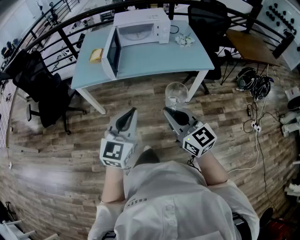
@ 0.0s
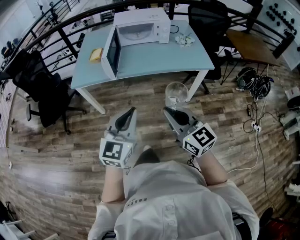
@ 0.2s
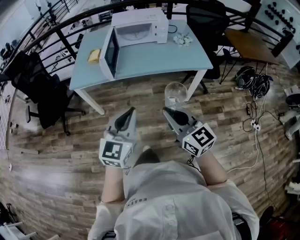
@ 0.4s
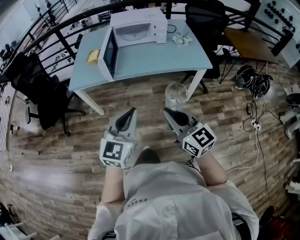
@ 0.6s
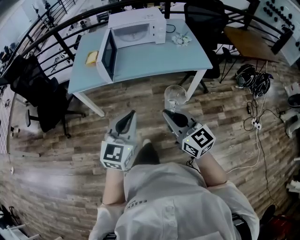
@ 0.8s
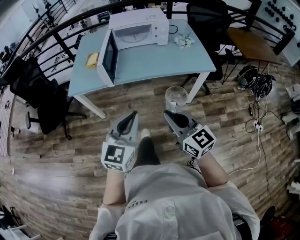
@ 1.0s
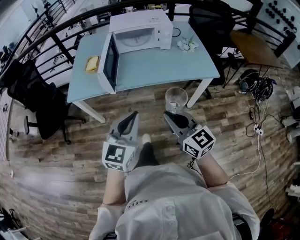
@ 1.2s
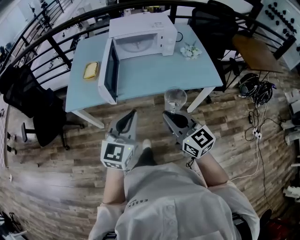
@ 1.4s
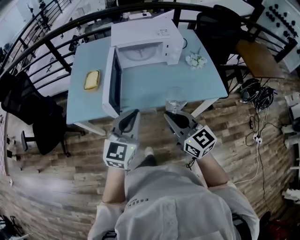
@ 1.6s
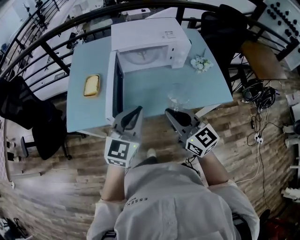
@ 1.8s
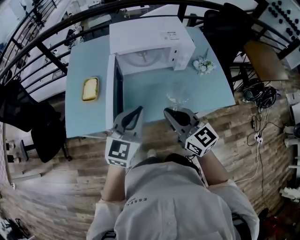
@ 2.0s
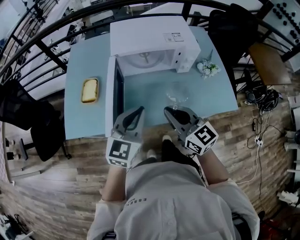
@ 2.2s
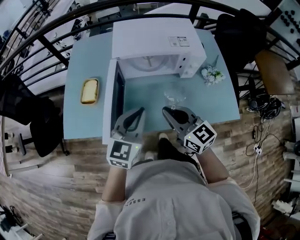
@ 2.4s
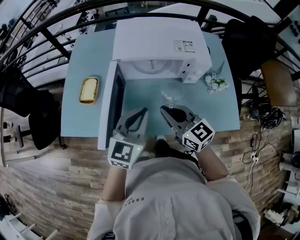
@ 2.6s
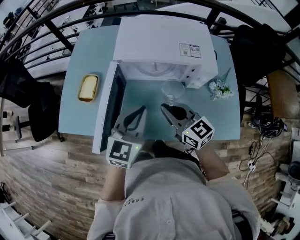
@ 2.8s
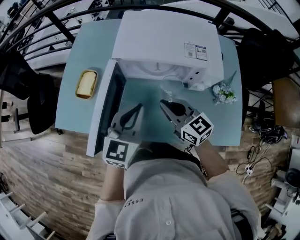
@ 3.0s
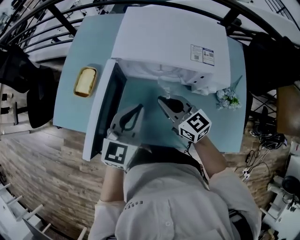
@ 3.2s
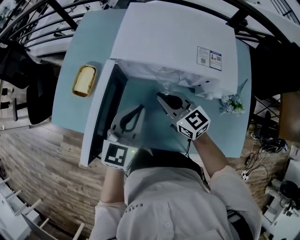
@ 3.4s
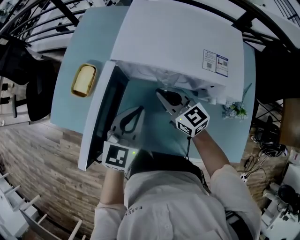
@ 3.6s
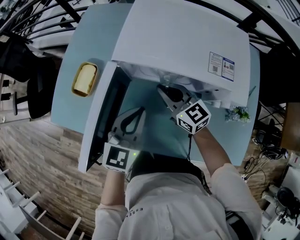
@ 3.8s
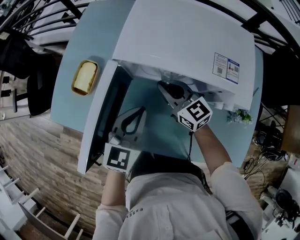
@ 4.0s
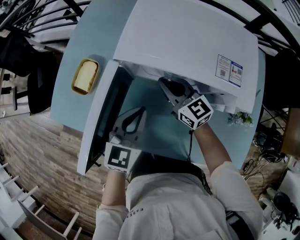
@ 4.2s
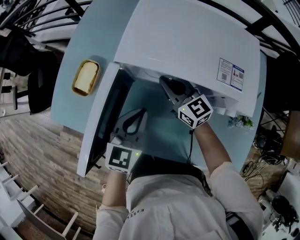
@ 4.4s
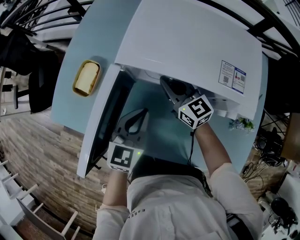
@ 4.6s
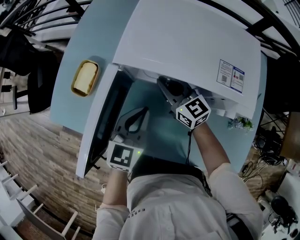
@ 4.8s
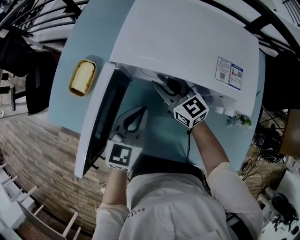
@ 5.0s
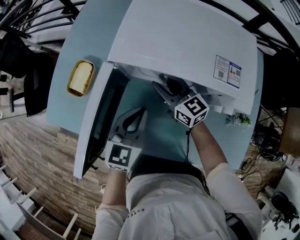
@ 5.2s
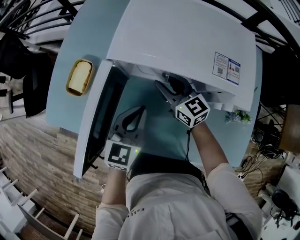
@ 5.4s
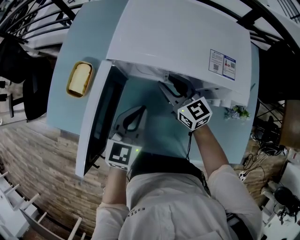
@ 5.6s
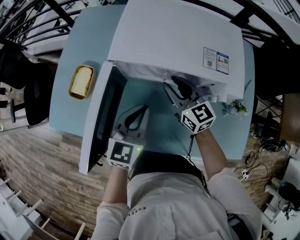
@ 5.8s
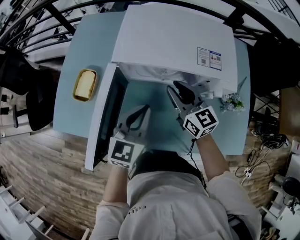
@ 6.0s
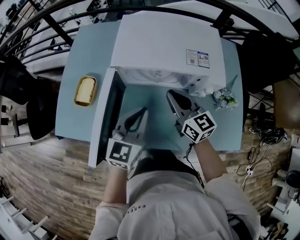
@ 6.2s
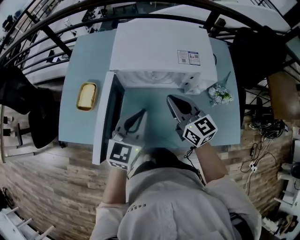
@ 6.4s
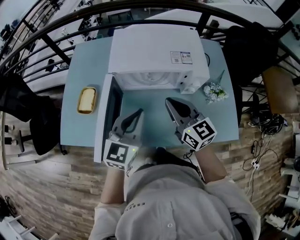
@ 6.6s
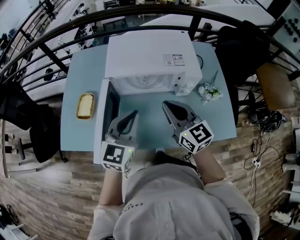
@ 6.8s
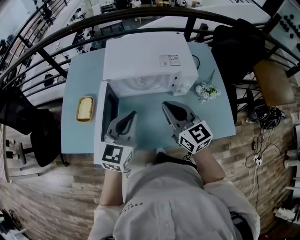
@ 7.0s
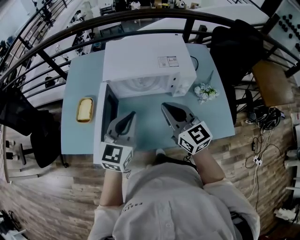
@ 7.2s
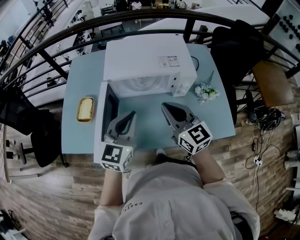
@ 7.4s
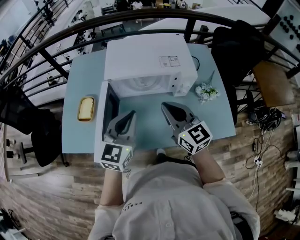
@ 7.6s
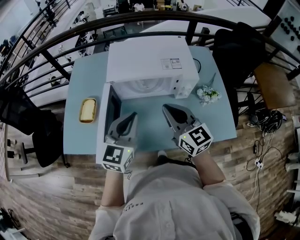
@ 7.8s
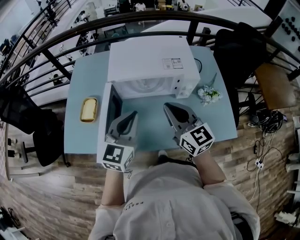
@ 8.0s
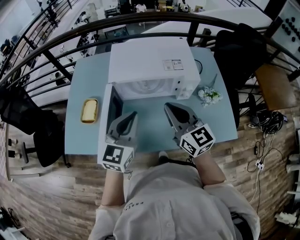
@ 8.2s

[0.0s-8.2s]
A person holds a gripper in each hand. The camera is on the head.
0.0s to 1.6s: The grippers both shift forward by about 30 cm.
1.6s to 3.2s: Both grippers move forward, about 35 cm. The right gripper turns by roughly 20 degrees.
3.2s to 5.0s: The right gripper moves forward and downward, about 15 cm. The left gripper heads downward and forward, covering roughly 10 cm.
5.0s to 6.6s: The left gripper travels upward and backward by approximately 15 cm, and turns by approximately 20 degrees. The right gripper goes some 25 cm backward, upward and to the right, rotates some 30 degrees, and closes.
6.6s to 8.2s: The right gripper moves roughly 5 cm.

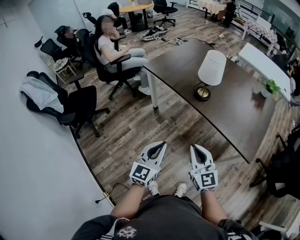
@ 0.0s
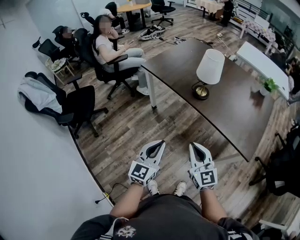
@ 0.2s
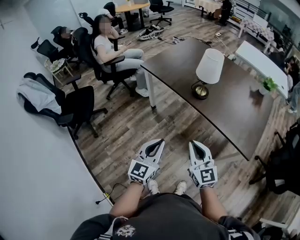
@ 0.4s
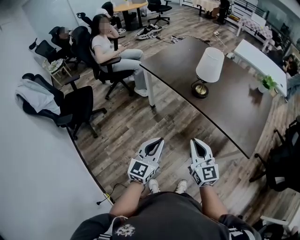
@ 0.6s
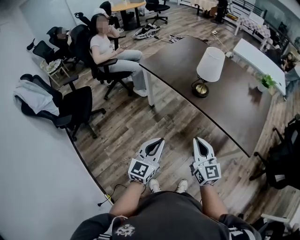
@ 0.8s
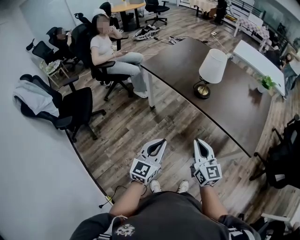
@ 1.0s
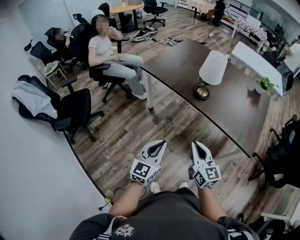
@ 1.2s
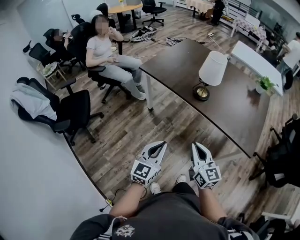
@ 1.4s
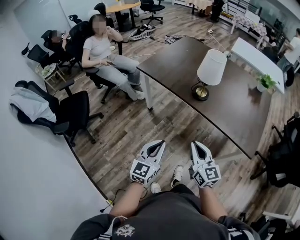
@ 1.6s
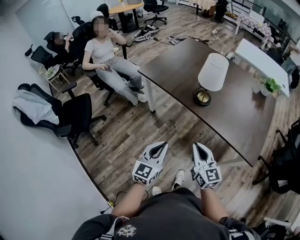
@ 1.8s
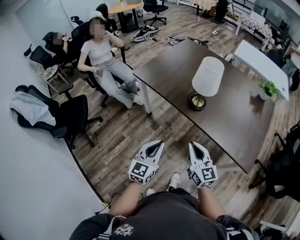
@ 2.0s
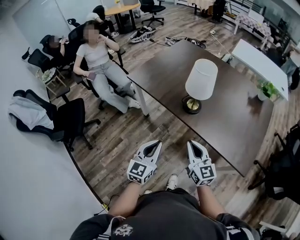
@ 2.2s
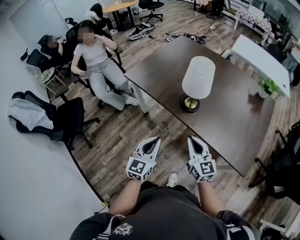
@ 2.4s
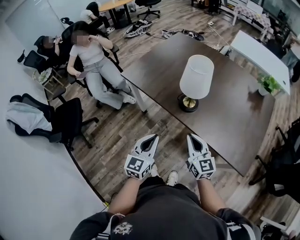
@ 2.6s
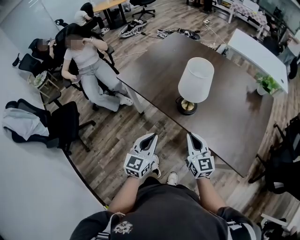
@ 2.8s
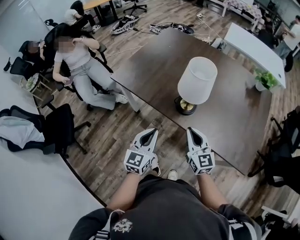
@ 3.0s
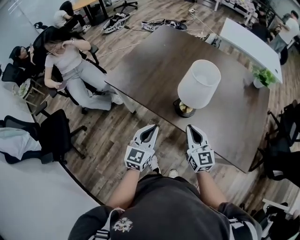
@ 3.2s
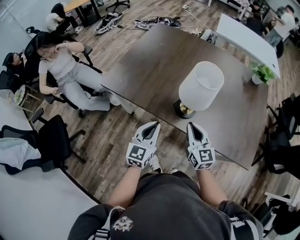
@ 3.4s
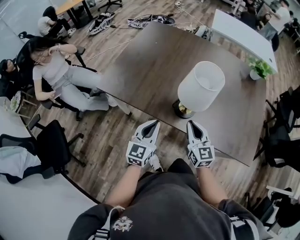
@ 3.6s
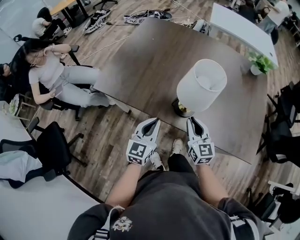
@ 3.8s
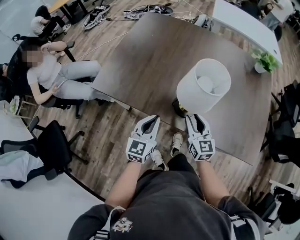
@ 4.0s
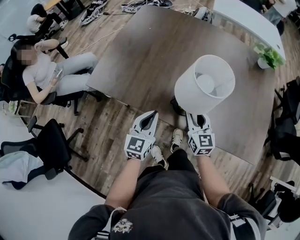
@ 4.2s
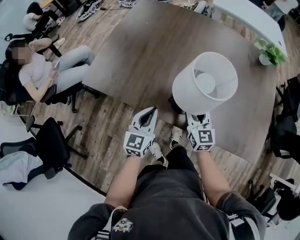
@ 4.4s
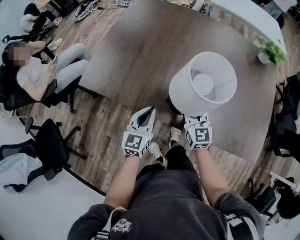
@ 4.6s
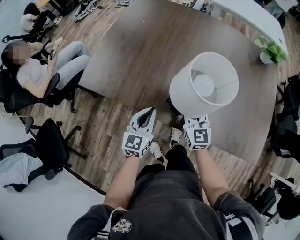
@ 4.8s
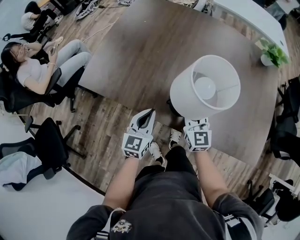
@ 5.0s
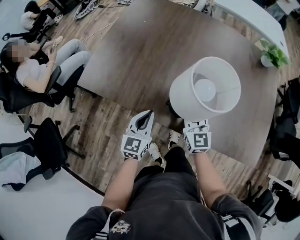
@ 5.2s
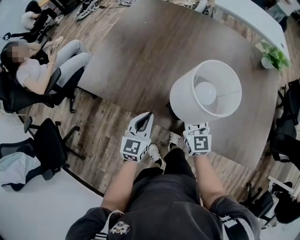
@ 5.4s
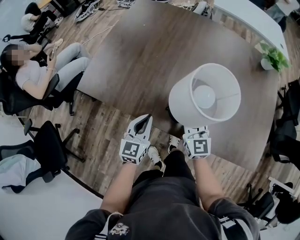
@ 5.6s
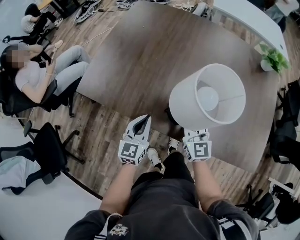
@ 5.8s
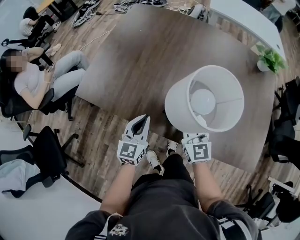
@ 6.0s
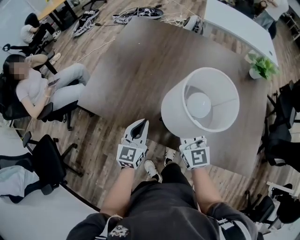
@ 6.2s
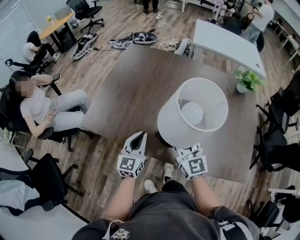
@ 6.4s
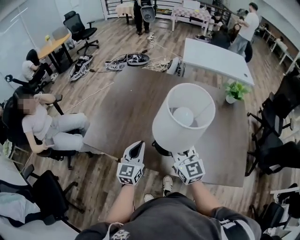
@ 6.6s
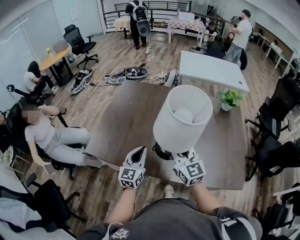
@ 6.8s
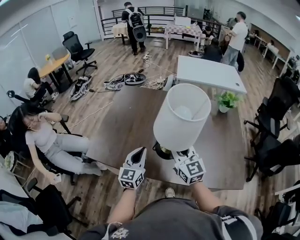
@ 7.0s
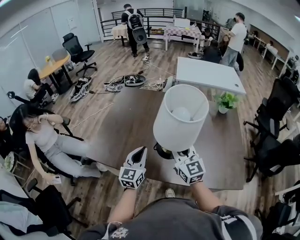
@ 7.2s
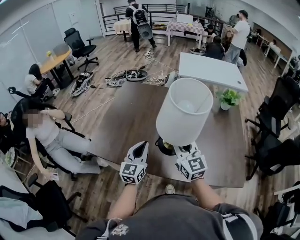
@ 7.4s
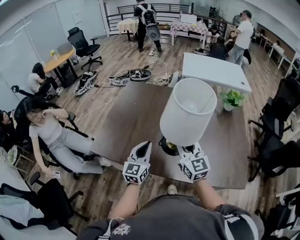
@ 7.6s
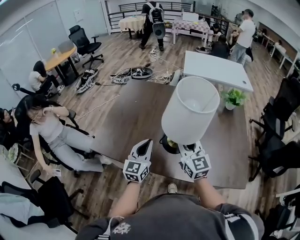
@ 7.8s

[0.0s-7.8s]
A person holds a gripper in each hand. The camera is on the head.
0.0s to 1.6s: The left gripper shifts by about 5 cm. The right gripper ends up roughly 5 cm from where it was.
1.6s to 3.2s: The grippers both shift forward by about 30 cm.
3.2s to 4.6s: The grippers both shift forward and downward by approximately 20 cm. The right gripper opens.
4.6s to 6.2s: The right gripper travels upward by about 10 cm.
6.2s to 7.8s: Both grippers travel together upward, approximately 15 cm.

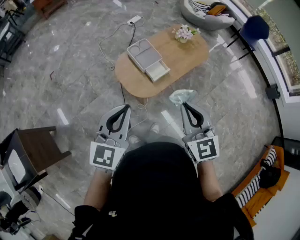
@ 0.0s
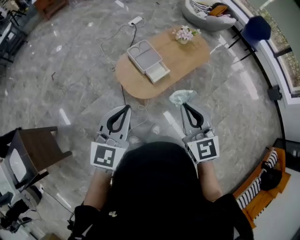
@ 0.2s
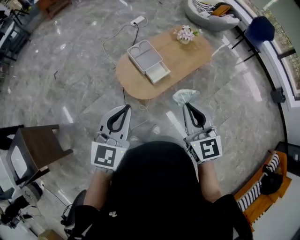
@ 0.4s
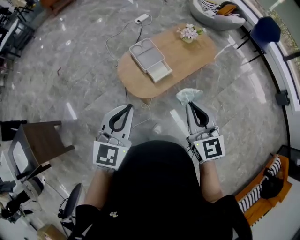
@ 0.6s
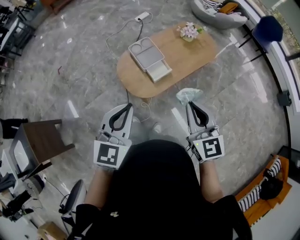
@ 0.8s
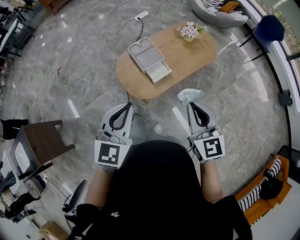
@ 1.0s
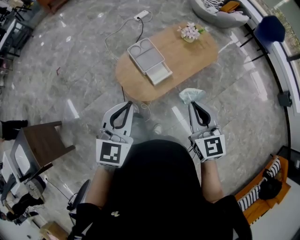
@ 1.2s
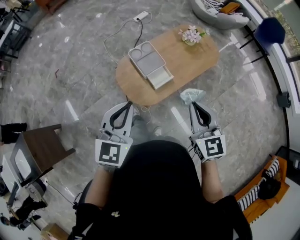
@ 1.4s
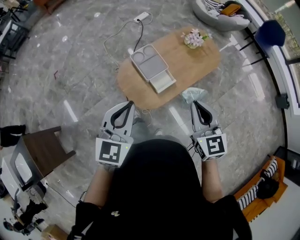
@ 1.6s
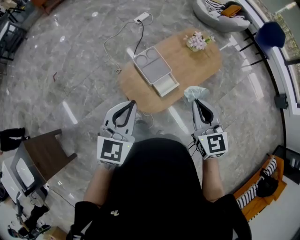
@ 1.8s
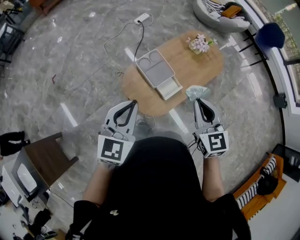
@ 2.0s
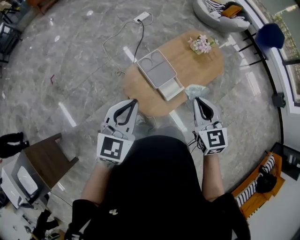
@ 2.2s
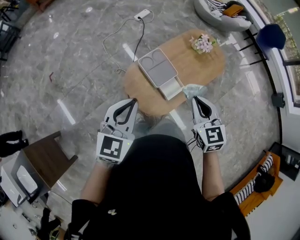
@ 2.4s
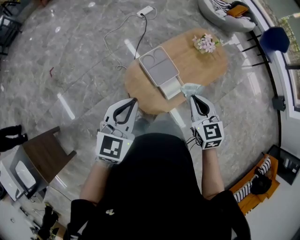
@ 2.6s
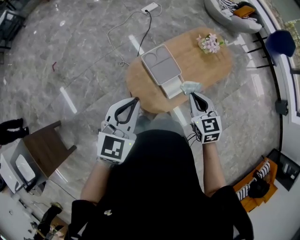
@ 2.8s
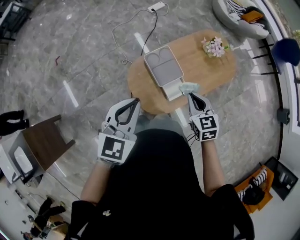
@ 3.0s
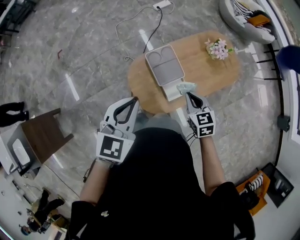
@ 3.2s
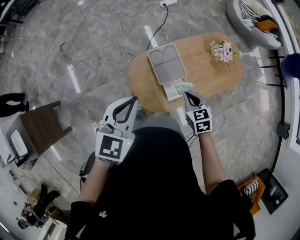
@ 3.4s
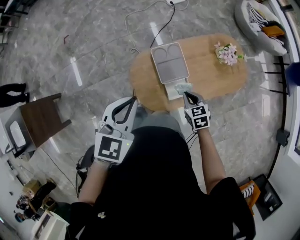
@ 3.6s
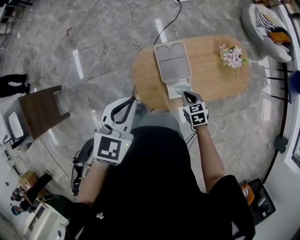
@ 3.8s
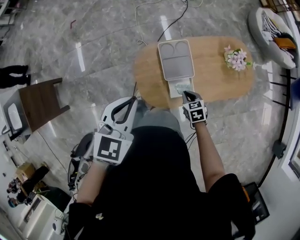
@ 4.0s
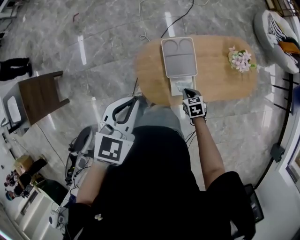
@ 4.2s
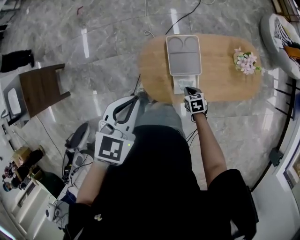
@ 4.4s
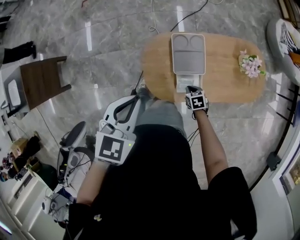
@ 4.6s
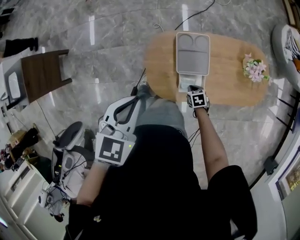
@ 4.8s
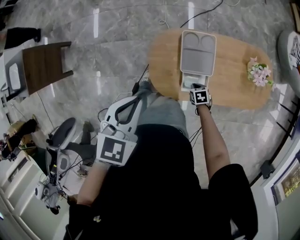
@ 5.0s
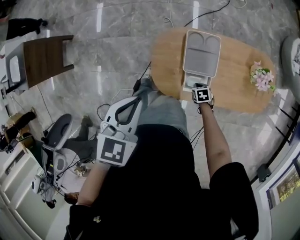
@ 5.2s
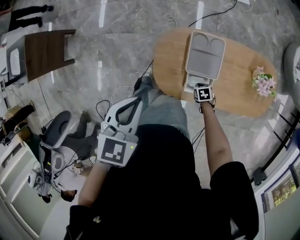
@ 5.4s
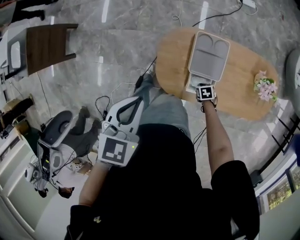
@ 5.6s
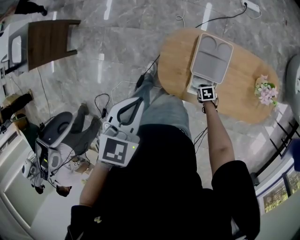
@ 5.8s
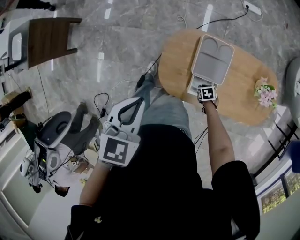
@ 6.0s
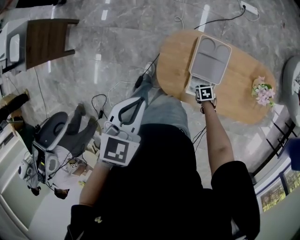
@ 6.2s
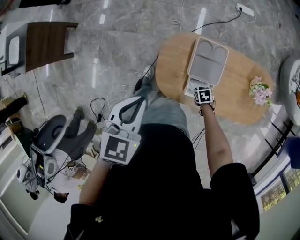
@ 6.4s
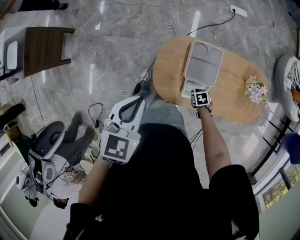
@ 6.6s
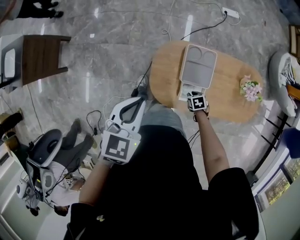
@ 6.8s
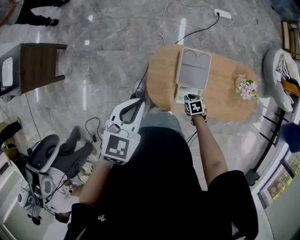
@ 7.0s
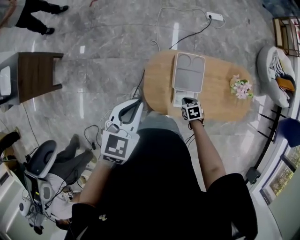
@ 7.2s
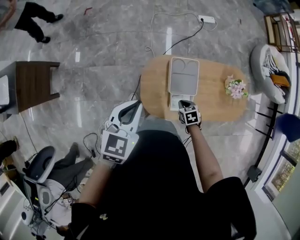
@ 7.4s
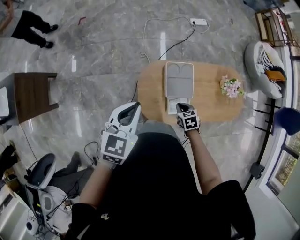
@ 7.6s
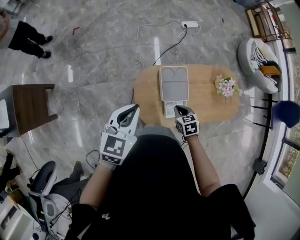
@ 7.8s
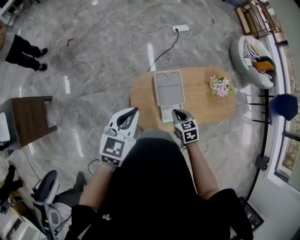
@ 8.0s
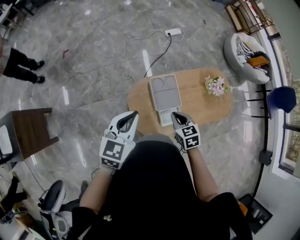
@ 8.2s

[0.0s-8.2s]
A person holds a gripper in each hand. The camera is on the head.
0.0s to 1.6s: Both grippers move forward, about 20 cm.
1.6s to 3.2s: The right gripper heads downward, forward and to the left, covering some 30 cm, and turns by approximately 30 degrees. The left gripper travels forward and to the left by approximately 15 cm.
3.2s to 5.0s: The left gripper goes roughly 10 cm downward, and turns by some 30 degrees. The right gripper goes about 35 cm downward, and rotates roughly 40 degrees.
5.0s to 6.6s: The left gripper changes place by some 5 cm, while the right gripper opens its fingers.
6.6s to 8.2s: The left gripper changes place by some 10 cm, and changes its angle by roughly 30 degrees; the right gripper heads upward, covering about 35 cm, changes its angle by approximately 40 degrees, and closes its fingers.
